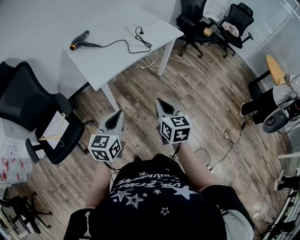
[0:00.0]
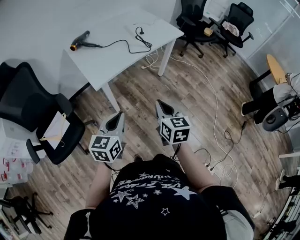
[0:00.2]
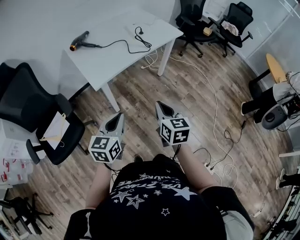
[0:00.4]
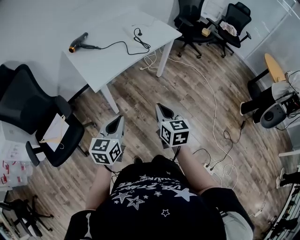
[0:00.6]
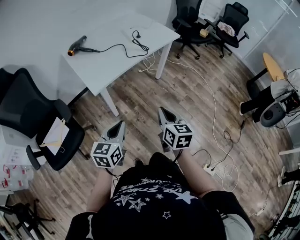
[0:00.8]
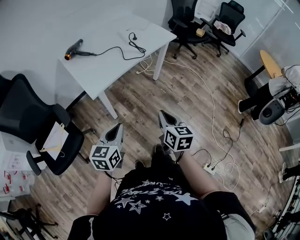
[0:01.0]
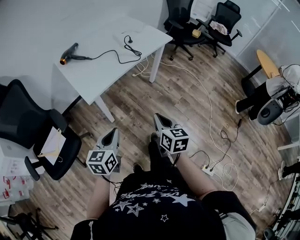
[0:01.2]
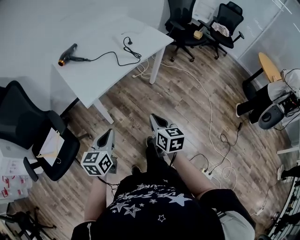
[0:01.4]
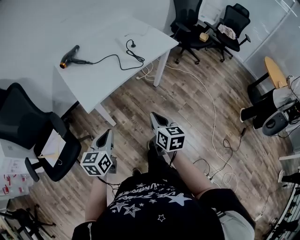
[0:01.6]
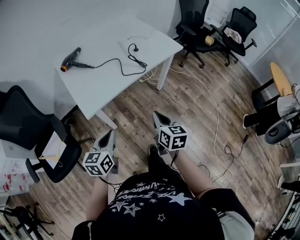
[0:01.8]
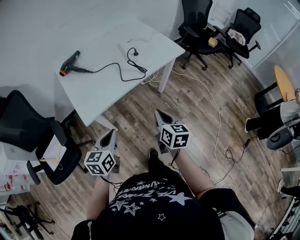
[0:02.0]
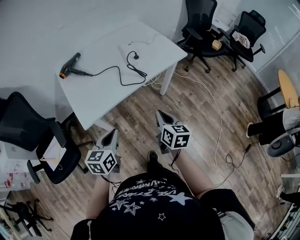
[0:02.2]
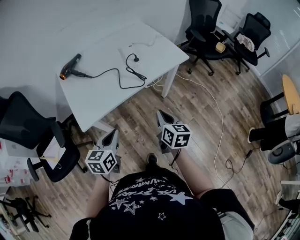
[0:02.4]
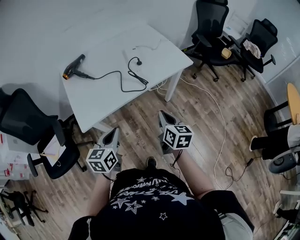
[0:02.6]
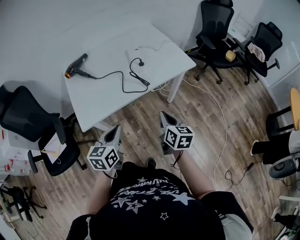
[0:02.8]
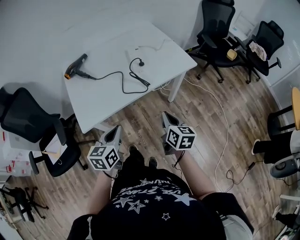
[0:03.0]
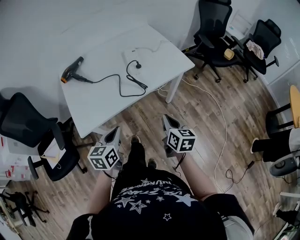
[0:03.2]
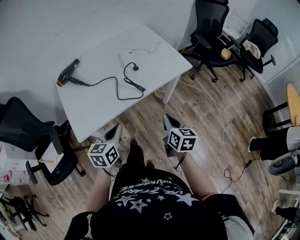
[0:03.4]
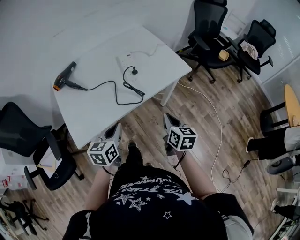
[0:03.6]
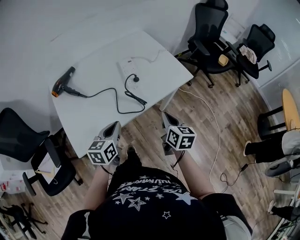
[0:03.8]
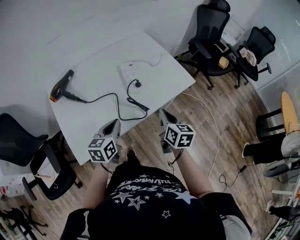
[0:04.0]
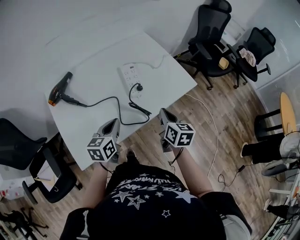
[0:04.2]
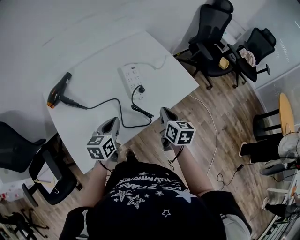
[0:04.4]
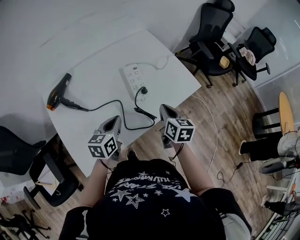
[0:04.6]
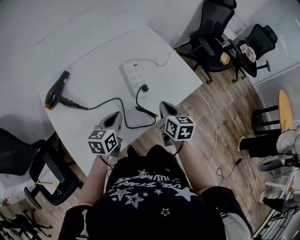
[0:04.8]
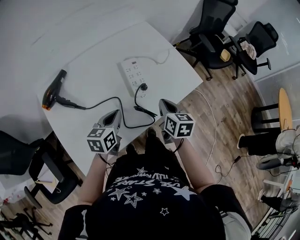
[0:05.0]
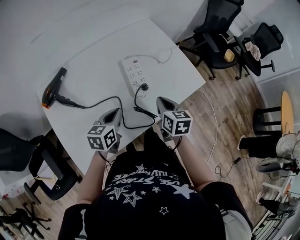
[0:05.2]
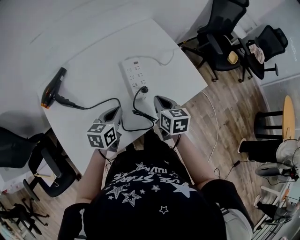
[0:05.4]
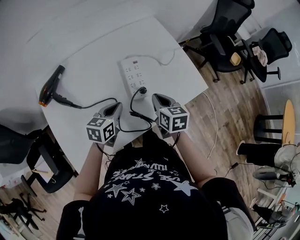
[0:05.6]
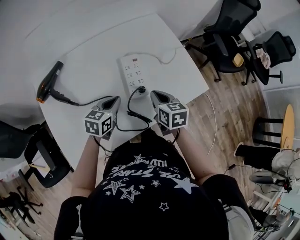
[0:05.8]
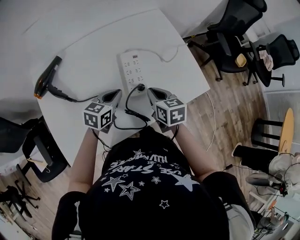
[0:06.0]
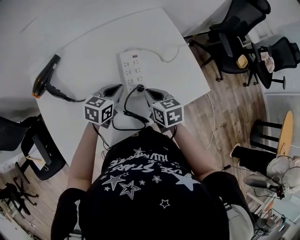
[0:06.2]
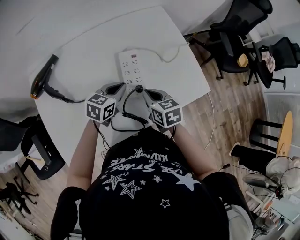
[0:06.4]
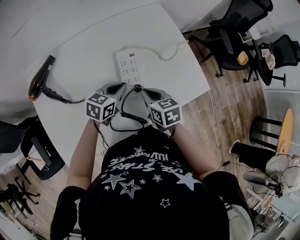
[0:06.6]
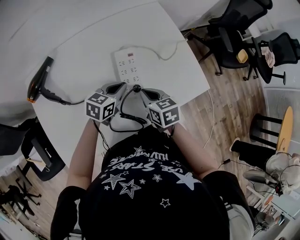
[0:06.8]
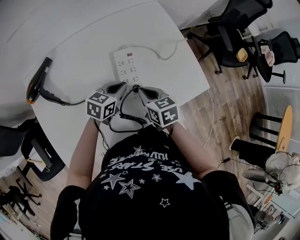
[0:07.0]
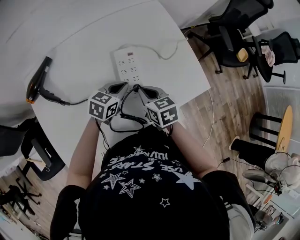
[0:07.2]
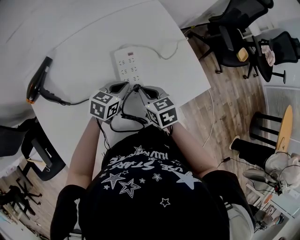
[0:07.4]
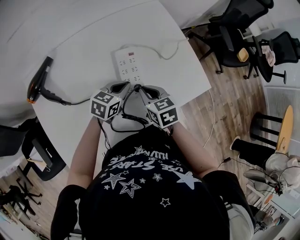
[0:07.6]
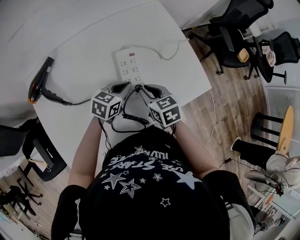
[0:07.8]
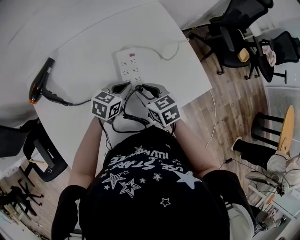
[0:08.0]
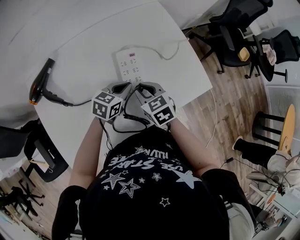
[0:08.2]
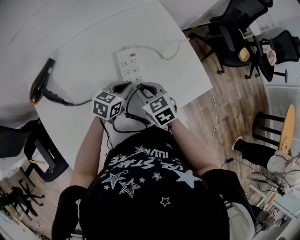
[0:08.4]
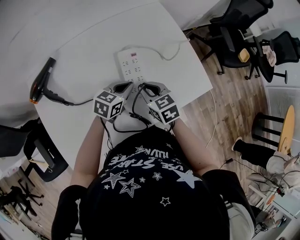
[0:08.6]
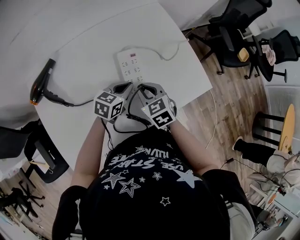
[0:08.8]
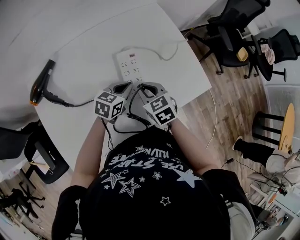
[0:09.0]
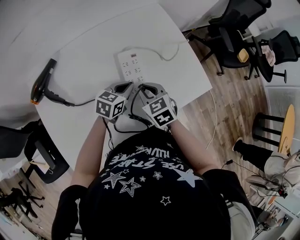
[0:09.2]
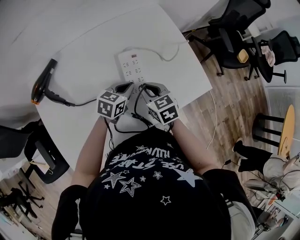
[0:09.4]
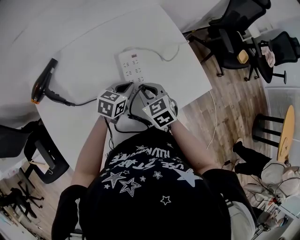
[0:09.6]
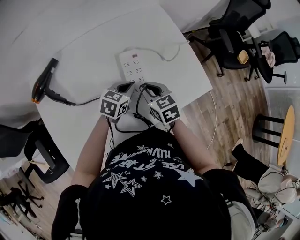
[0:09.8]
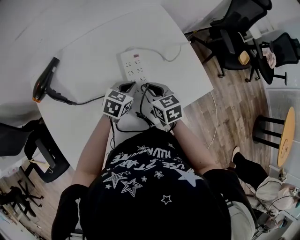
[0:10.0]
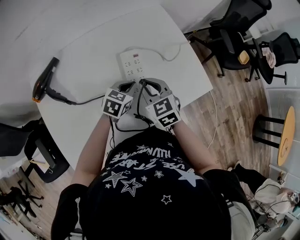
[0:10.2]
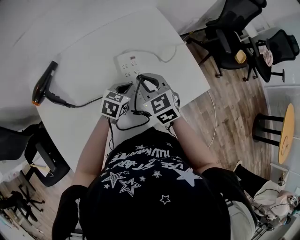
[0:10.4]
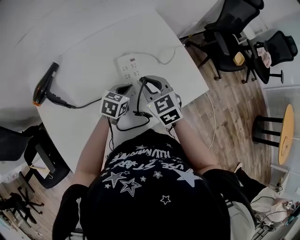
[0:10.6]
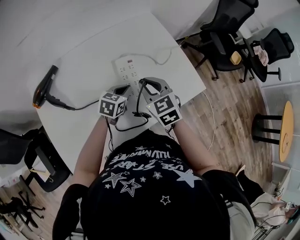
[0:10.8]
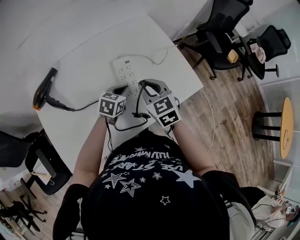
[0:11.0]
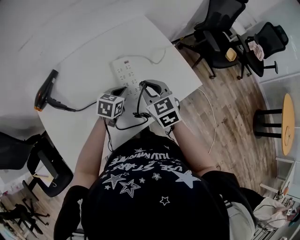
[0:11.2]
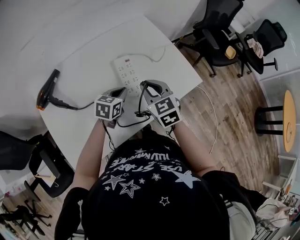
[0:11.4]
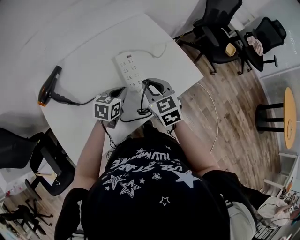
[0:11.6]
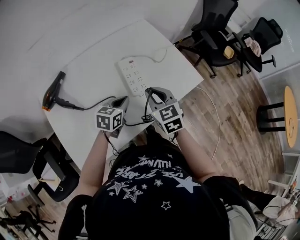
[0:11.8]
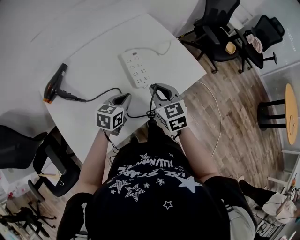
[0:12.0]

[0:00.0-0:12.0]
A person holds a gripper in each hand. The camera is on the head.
0:00.0 to 0:01.6: The two grippers go roughly 5 cm forward.
0:01.6 to 0:03.0: Both grippers move forward and to the right, about 25 cm.
0:03.0 to 0:04.4: Both grippers travel together forward, about 25 cm.
0:04.4 to 0:06.0: The left gripper travels forward and downward by some 15 cm. Meanwhile the right gripper moves forward, downward and to the left, about 15 cm, and changes its angle by approximately 30 degrees.
0:06.0 to 0:07.6: The left gripper goes some 5 cm forward and to the right.
0:07.6 to 0:09.0: The grippers make only small movements.
0:09.0 to 0:10.4: The right gripper goes some 5 cm upward.
0:10.4 to 0:12.0: The left gripper moves backward and upward, about 15 cm; the right gripper moves backward, approximately 10 cm.

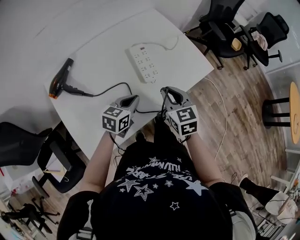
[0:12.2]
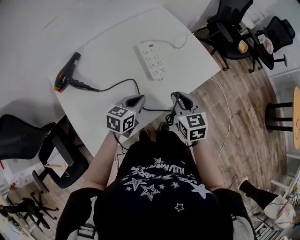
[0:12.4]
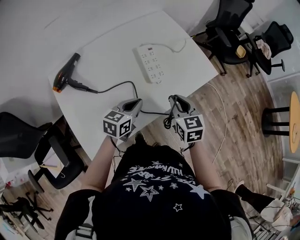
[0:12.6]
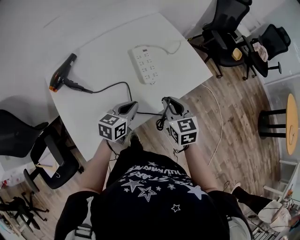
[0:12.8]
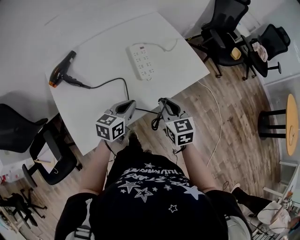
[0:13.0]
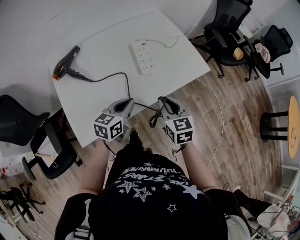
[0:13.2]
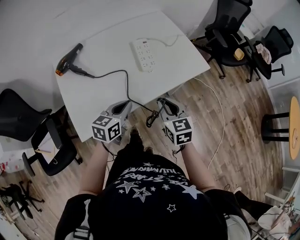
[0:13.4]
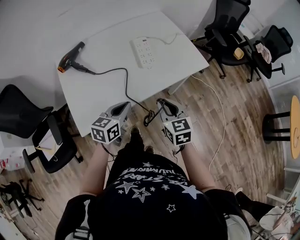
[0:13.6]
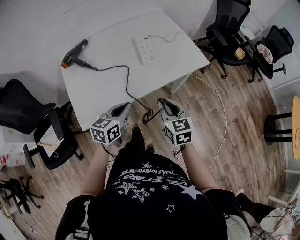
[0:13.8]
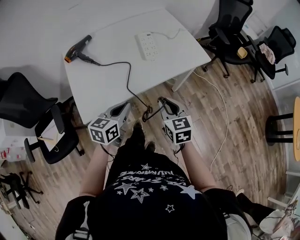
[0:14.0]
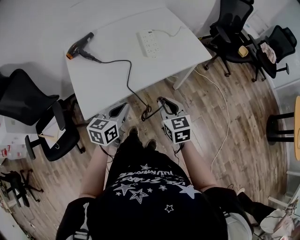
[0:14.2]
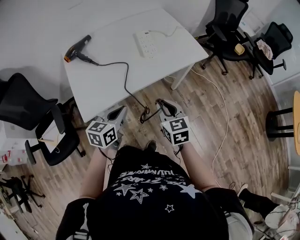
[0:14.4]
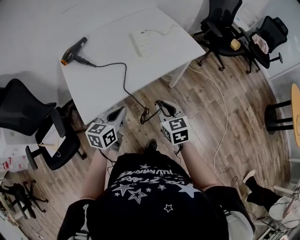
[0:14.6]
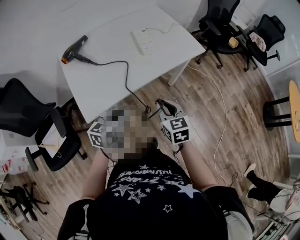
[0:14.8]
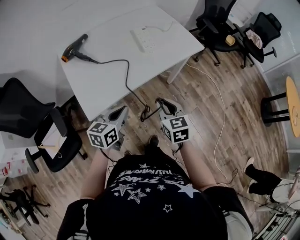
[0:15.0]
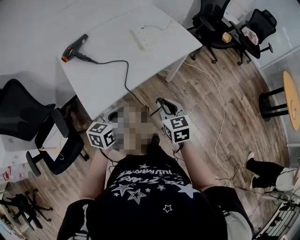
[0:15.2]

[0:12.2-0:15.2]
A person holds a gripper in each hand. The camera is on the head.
0:12.2 to 0:13.8: Both grippers travel together backward, some 20 cm.
0:13.8 to 0:15.2: Both grippers travel together backward and to the left, roughly 15 cm.

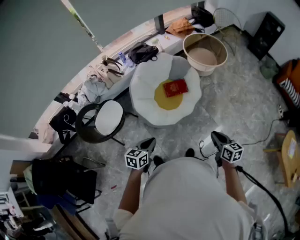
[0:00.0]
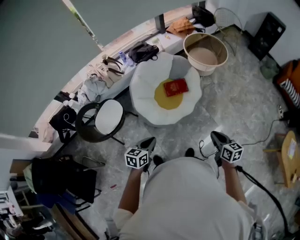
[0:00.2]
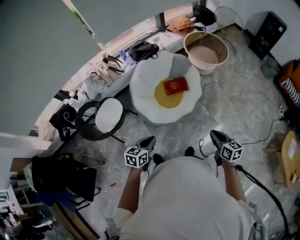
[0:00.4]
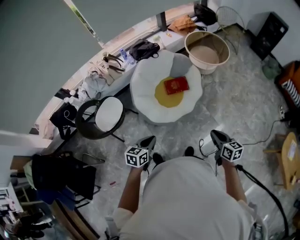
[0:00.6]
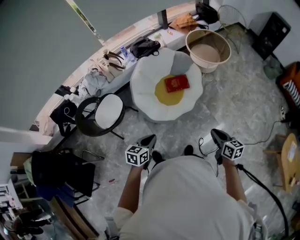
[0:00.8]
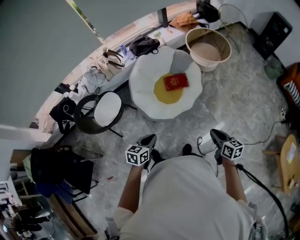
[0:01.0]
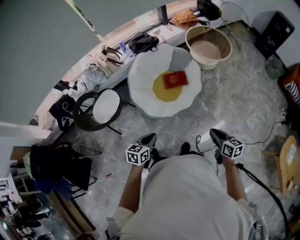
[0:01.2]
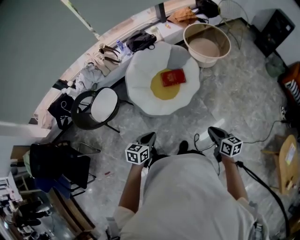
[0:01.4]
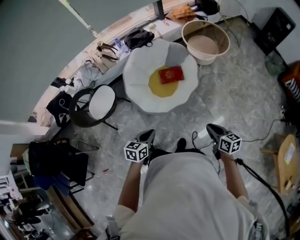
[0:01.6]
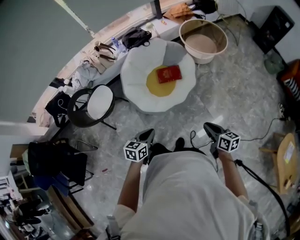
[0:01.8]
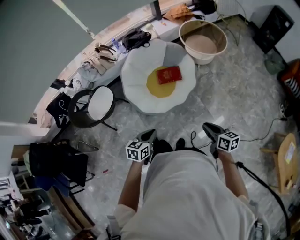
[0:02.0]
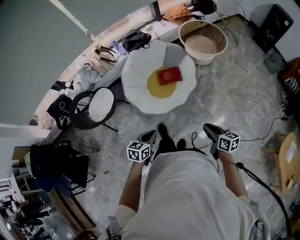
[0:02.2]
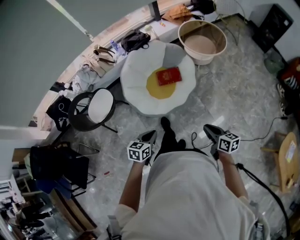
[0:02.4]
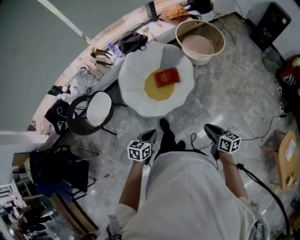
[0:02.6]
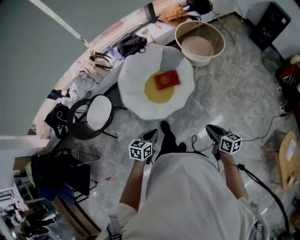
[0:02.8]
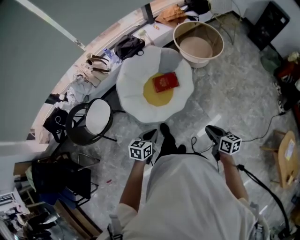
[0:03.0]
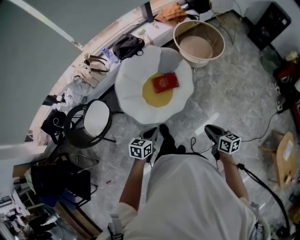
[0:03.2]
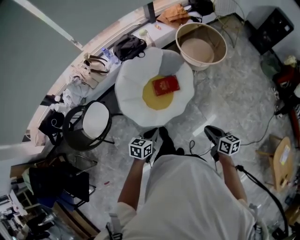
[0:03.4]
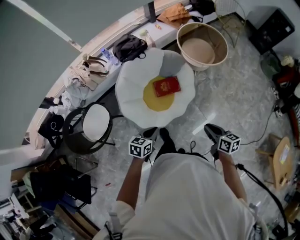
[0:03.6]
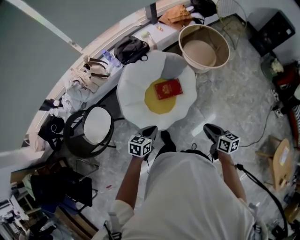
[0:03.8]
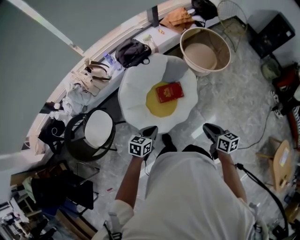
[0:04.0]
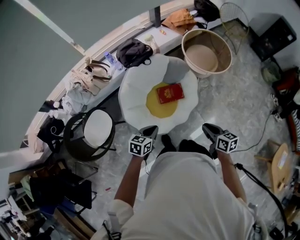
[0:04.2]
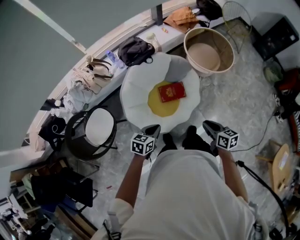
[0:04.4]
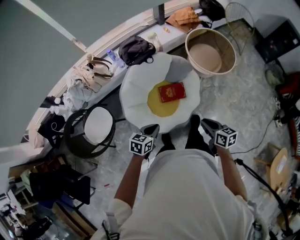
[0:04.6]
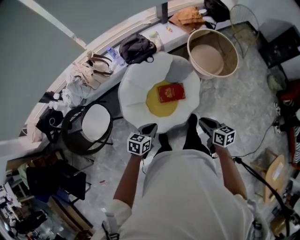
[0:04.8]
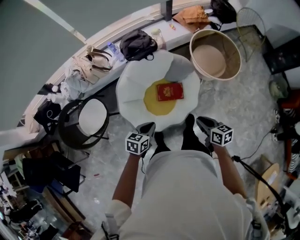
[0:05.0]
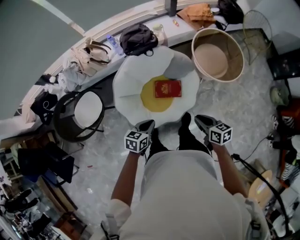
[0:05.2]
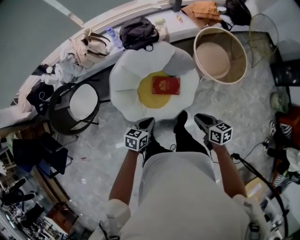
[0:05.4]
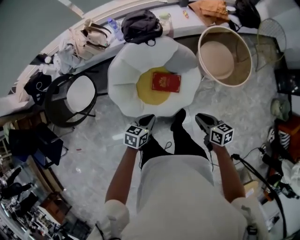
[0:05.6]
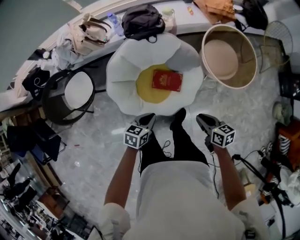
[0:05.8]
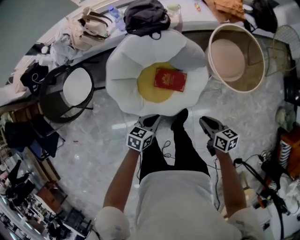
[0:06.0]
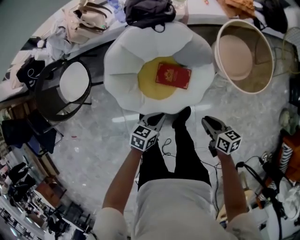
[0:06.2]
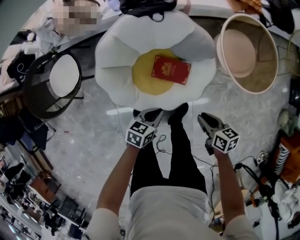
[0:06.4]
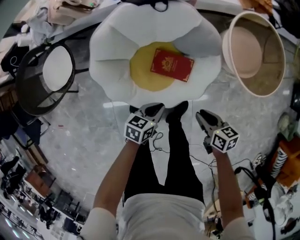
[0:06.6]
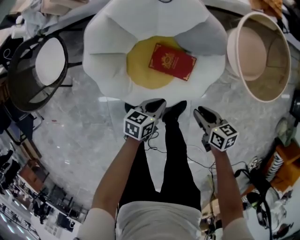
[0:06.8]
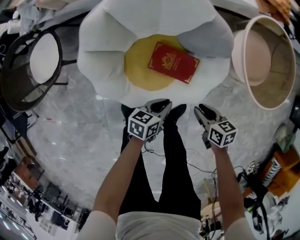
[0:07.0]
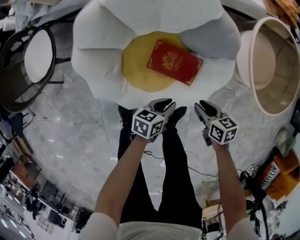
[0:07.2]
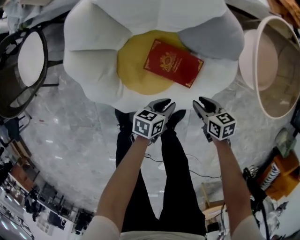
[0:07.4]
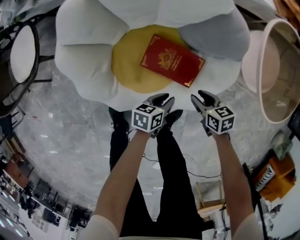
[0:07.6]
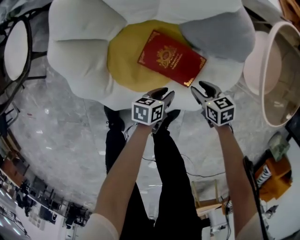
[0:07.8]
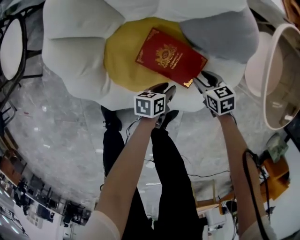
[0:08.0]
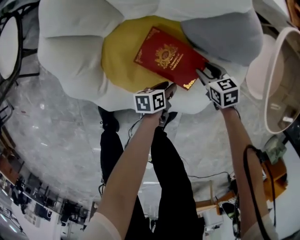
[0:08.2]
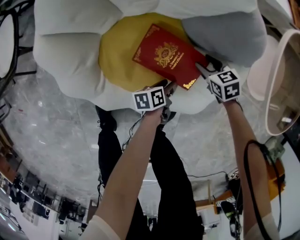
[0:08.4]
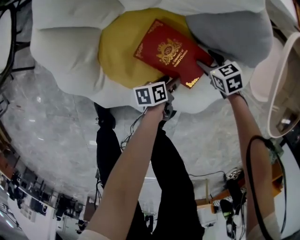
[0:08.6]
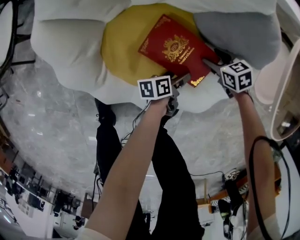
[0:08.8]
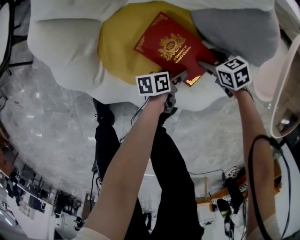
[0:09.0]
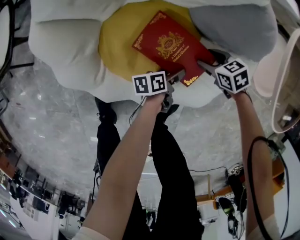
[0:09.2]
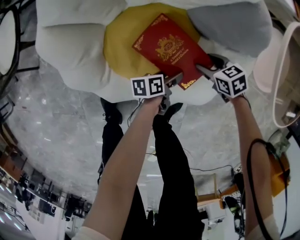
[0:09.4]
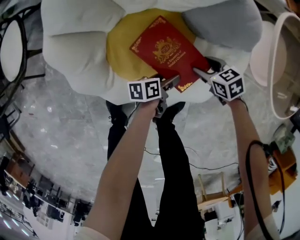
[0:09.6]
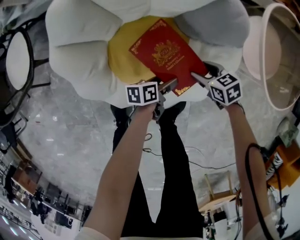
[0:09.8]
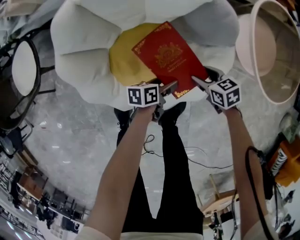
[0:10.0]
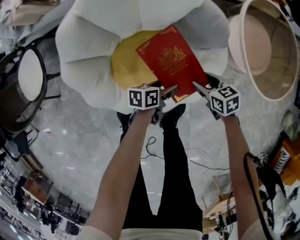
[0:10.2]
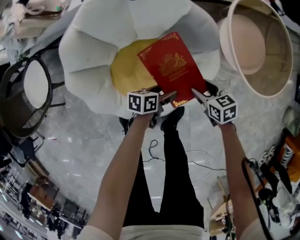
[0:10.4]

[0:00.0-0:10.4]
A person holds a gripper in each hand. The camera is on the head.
0:00.0 to 0:01.4: The two grippers go about 10 cm to the right.
0:01.4 to 0:03.0: The right gripper shifts roughly 10 cm forward; the left gripper shifts about 10 cm forward and to the right.
0:03.0 to 0:04.4: Both grippers travel together forward and to the left, roughly 20 cm.
0:04.4 to 0:06.0: The left gripper travels to the right, downward and forward by about 20 cm, and turns by approximately 20 degrees. The right gripper travels forward, downward and to the right by approximately 25 cm, and rotates about 30 degrees.
0:06.0 to 0:07.4: The two grippers go approximately 35 cm downward. The right gripper rotates some 20 degrees, while the left gripper rotates approximately 20 degrees.
0:07.4 to 0:09.0: Both grippers travel together downward, approximately 20 cm. The right gripper rotates approximately 30 degrees, and opens up, while the left gripper turns by some 40 degrees, and opens up.
0:09.0 to 0:10.4: Both grippers travel together upward, about 25 cm. The right gripper swivels approximately 30 degrees; the left gripper rotates approximately 40 degrees.
